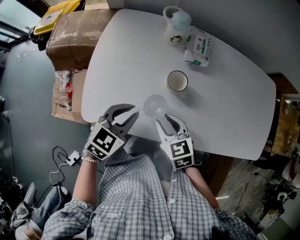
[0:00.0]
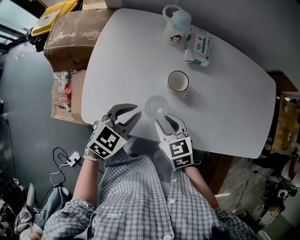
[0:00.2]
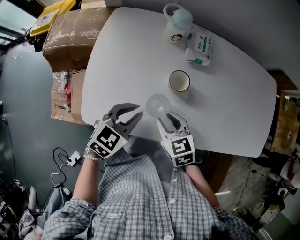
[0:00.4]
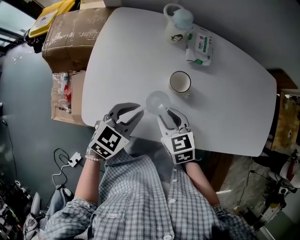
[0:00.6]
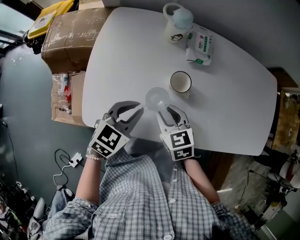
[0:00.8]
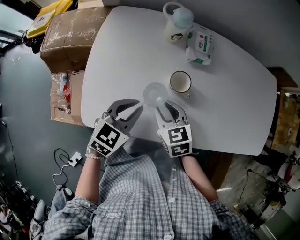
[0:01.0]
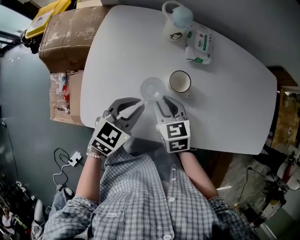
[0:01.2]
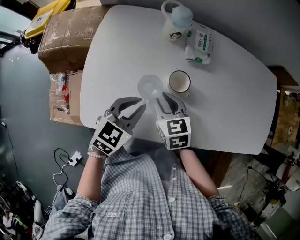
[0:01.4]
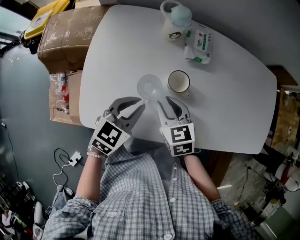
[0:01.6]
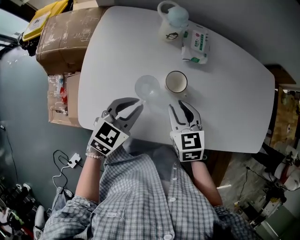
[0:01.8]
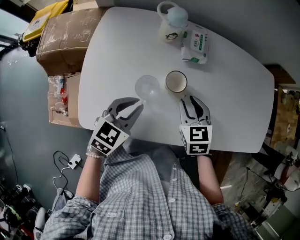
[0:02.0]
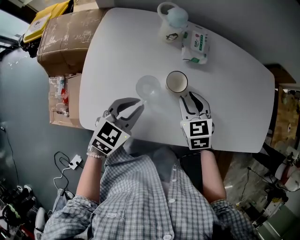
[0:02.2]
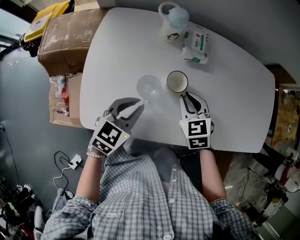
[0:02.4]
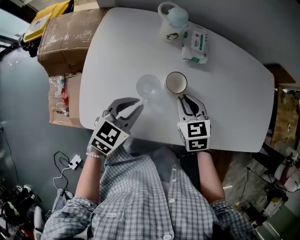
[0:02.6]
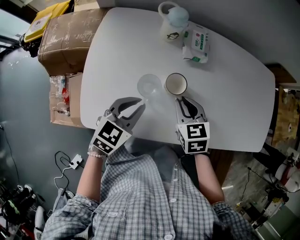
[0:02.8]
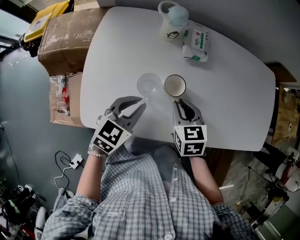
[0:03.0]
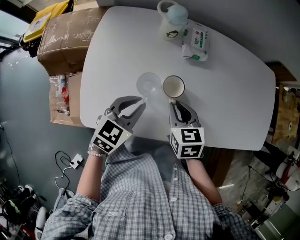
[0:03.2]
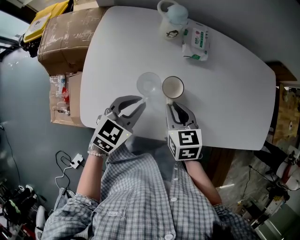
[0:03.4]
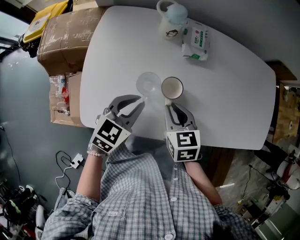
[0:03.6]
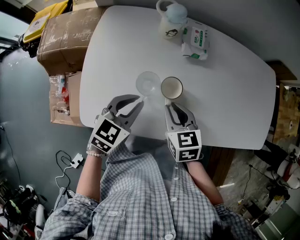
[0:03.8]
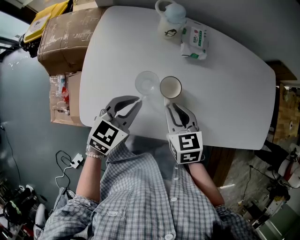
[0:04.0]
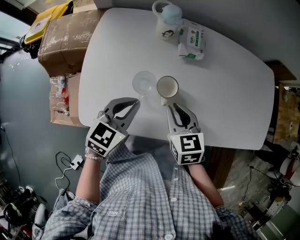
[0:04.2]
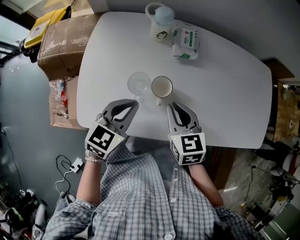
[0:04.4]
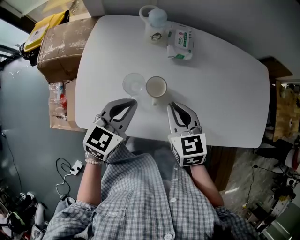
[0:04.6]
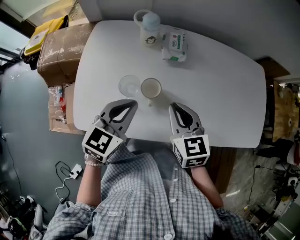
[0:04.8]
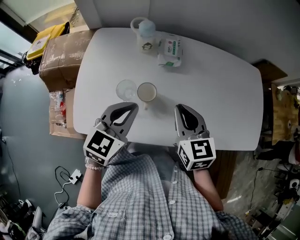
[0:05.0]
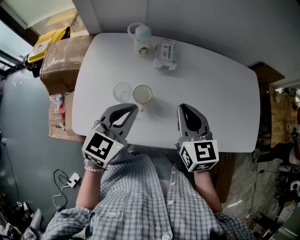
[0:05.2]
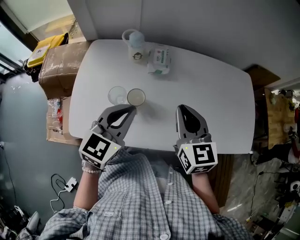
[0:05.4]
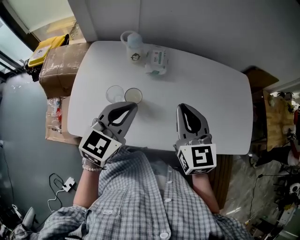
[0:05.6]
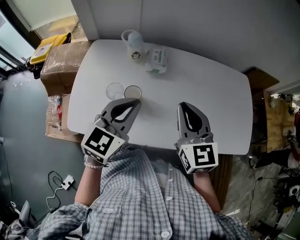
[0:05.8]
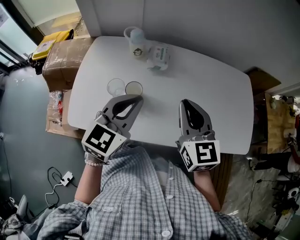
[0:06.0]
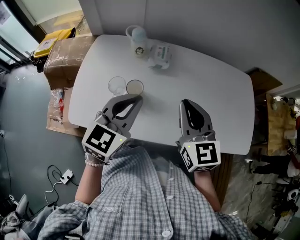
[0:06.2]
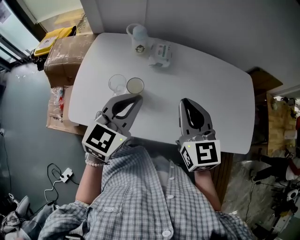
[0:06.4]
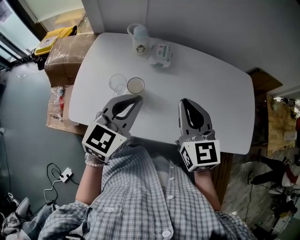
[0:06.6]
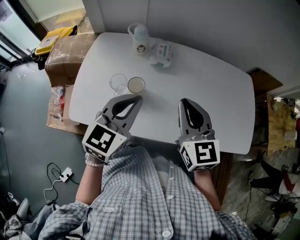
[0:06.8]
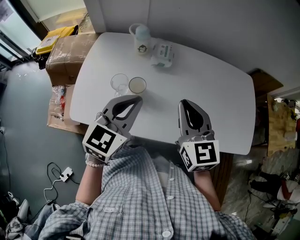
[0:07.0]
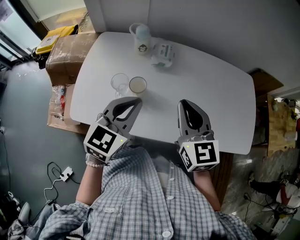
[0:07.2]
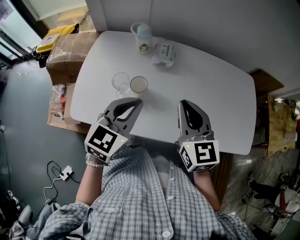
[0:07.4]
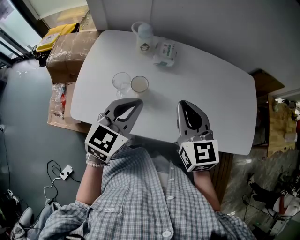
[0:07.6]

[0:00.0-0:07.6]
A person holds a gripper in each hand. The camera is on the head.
0.0 to 1.6 s: The right gripper heads forward, covering about 5 cm.
1.6 to 3.0 s: The right gripper shifts about 5 cm to the right.
3.0 to 4.6 s: The two grippers go about 5 cm upward.
4.6 to 6.0 s: Both grippers travel together upward and to the right, approximately 15 cm. The right gripper changes its angle by approximately 20 degrees.
6.0 to 7.6 s: The grippers stay close to where they were, moving slightly.

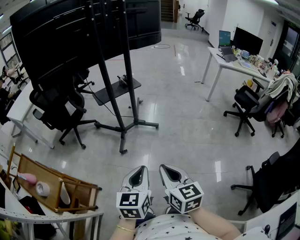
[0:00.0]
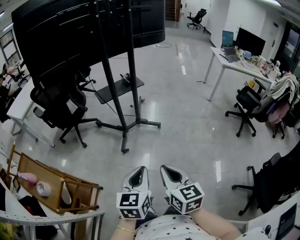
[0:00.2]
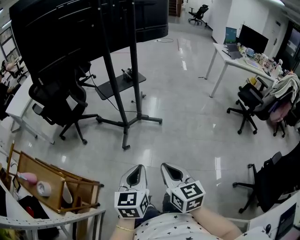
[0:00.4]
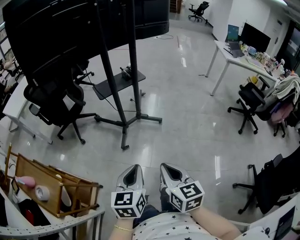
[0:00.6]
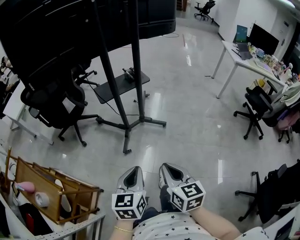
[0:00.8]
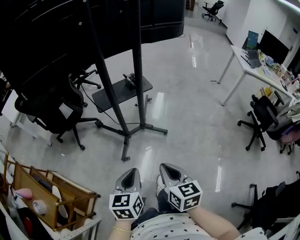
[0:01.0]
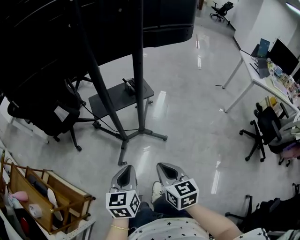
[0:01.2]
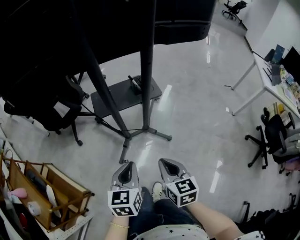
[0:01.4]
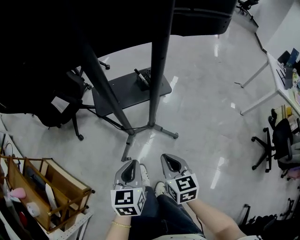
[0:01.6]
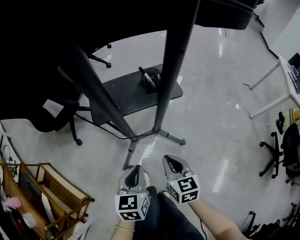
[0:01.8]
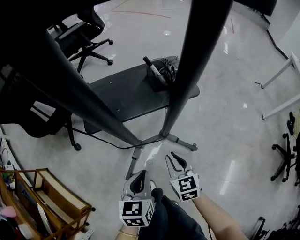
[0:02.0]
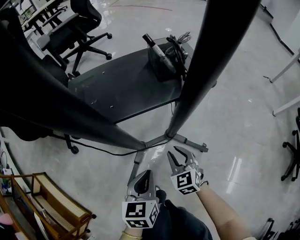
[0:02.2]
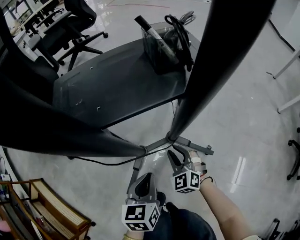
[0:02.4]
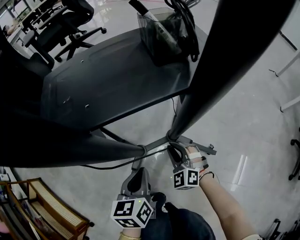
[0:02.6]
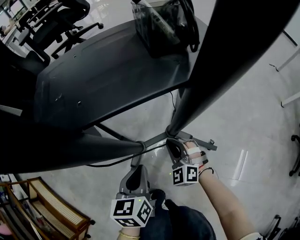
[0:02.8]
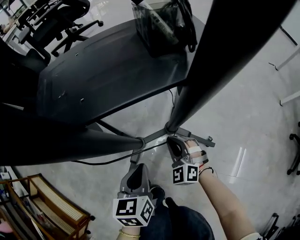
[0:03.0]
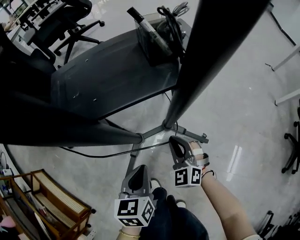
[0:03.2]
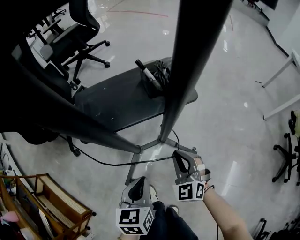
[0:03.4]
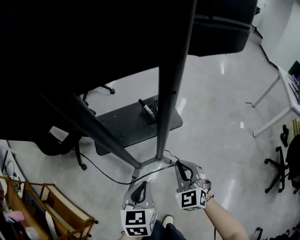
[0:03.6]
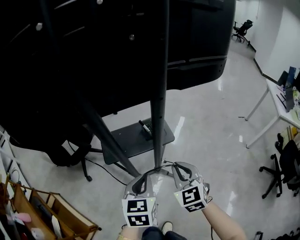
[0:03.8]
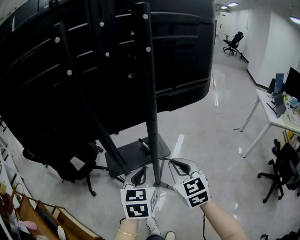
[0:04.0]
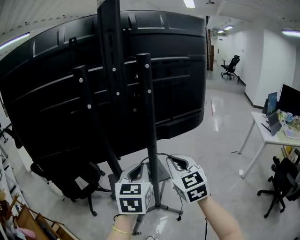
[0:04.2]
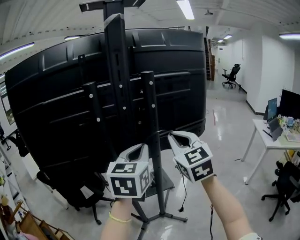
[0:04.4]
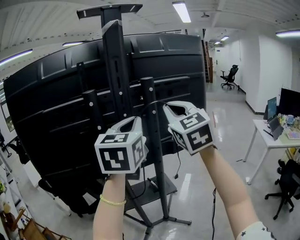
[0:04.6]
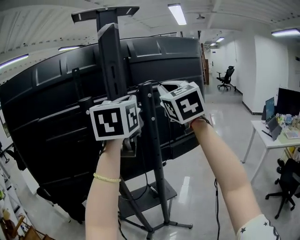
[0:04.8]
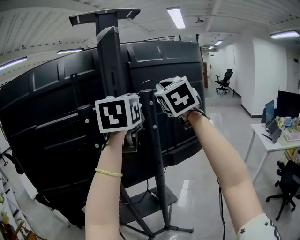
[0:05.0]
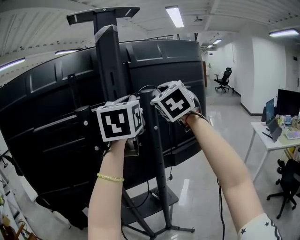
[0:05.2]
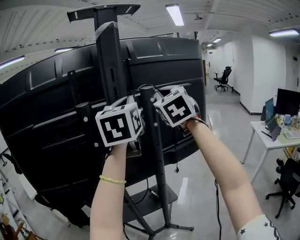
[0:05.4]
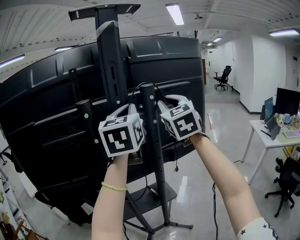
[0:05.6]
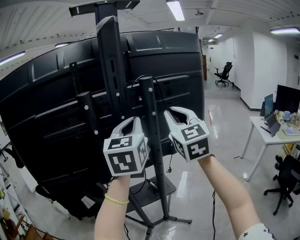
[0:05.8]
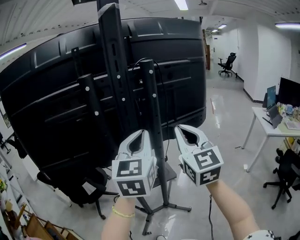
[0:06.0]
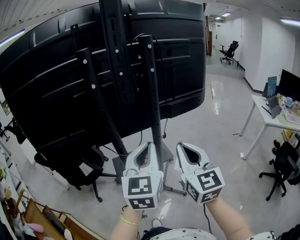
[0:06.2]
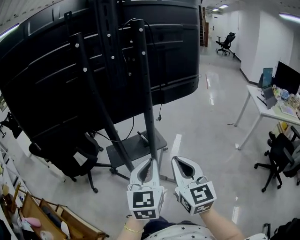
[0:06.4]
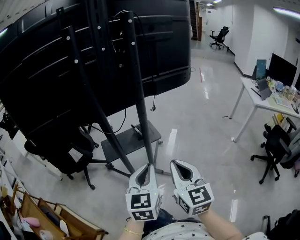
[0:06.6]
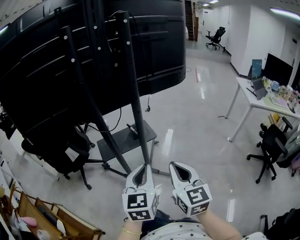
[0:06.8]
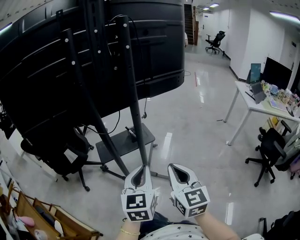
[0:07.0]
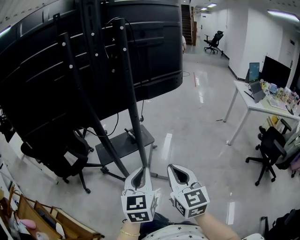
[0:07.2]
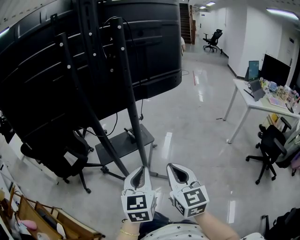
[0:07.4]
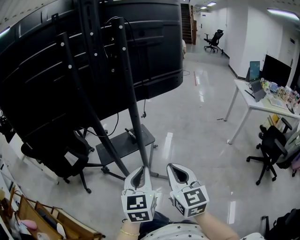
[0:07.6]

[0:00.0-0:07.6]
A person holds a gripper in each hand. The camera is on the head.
0.0 to 1.6 s: The pair of grippers is taken forward, roughly 50 cm. The left gripper swivels roughly 20 degrees.
1.6 to 3.0 s: The two grippers go about 50 cm downward and forward. The right gripper twists roughly 60 degrees counterclockwise, seen from behind, and opens and closes again.
3.0 to 4.6 s: Both grippers move upward, approximately 1 m. The left gripper angles its fingers upward, by about 40 degrees; the right gripper tips its fingers upward by about 40 degrees.
4.6 to 6.0 s: The right gripper travels downward and backward by about 15 cm, while the left gripper goes roughly 10 cm downward.
6.0 to 7.6 s: The two grippers go roughly 30 cm downward and backward. The right gripper turns by roughly 20 degrees.

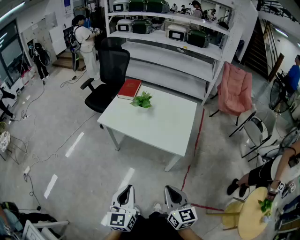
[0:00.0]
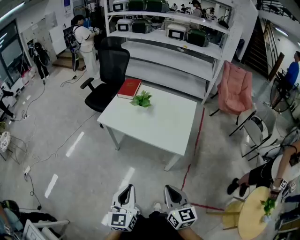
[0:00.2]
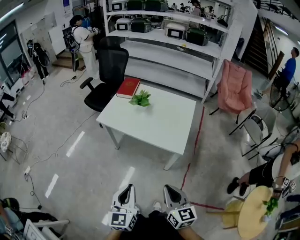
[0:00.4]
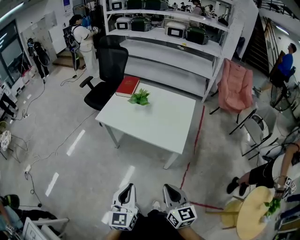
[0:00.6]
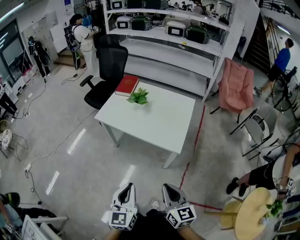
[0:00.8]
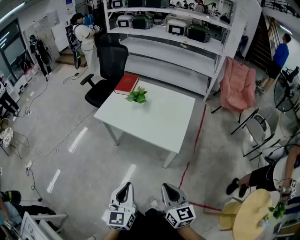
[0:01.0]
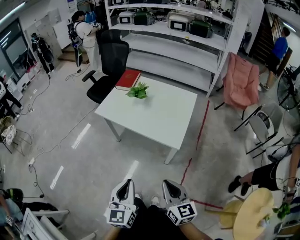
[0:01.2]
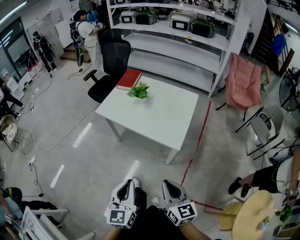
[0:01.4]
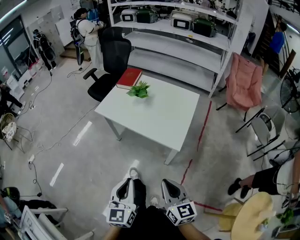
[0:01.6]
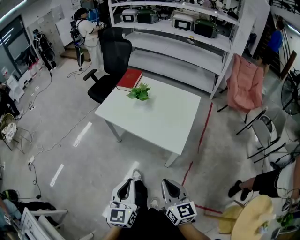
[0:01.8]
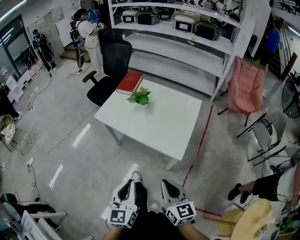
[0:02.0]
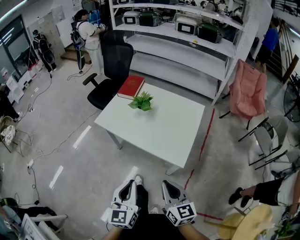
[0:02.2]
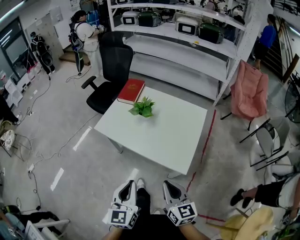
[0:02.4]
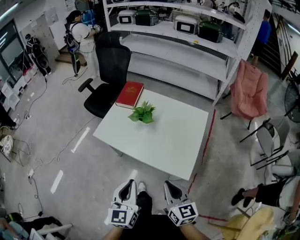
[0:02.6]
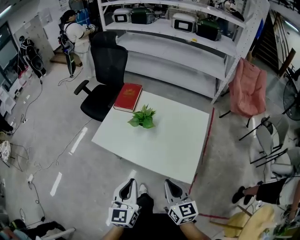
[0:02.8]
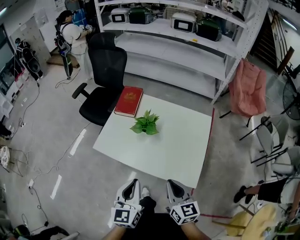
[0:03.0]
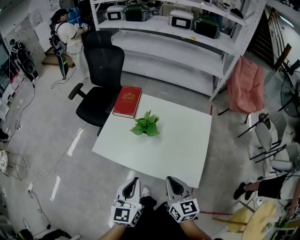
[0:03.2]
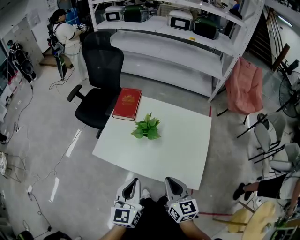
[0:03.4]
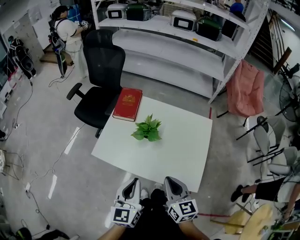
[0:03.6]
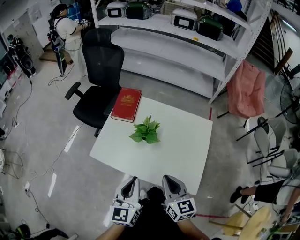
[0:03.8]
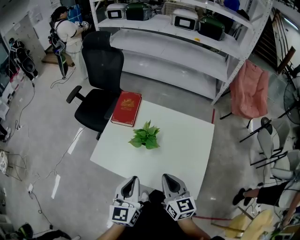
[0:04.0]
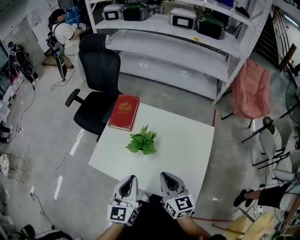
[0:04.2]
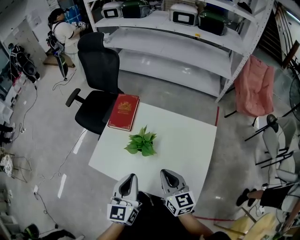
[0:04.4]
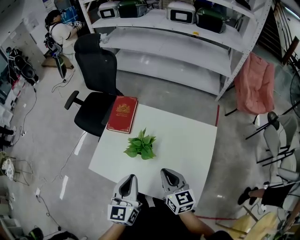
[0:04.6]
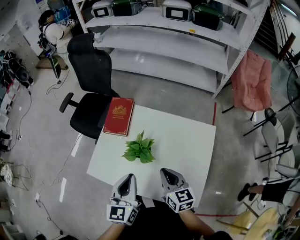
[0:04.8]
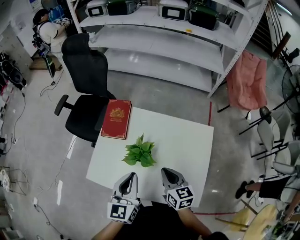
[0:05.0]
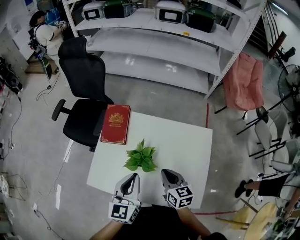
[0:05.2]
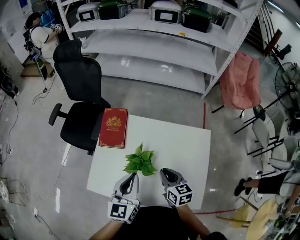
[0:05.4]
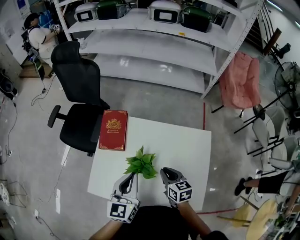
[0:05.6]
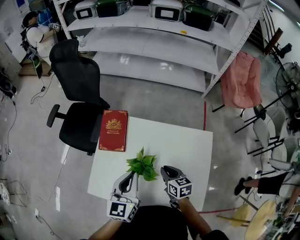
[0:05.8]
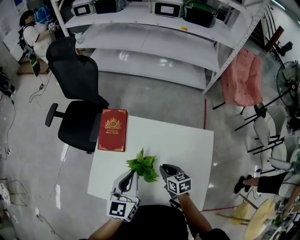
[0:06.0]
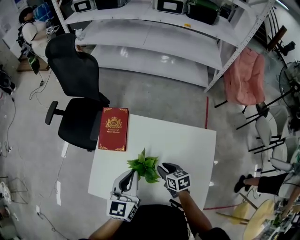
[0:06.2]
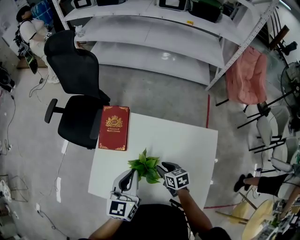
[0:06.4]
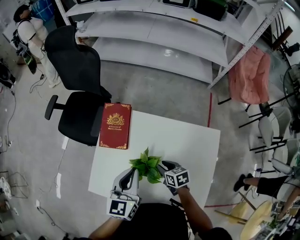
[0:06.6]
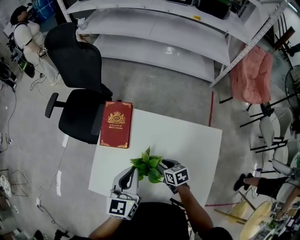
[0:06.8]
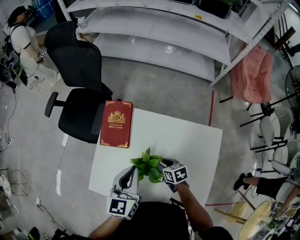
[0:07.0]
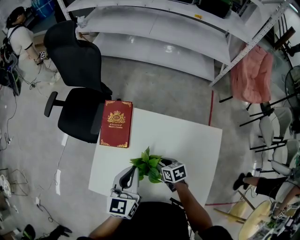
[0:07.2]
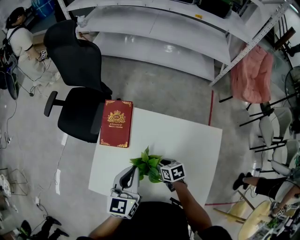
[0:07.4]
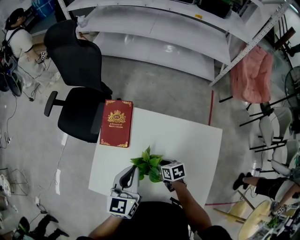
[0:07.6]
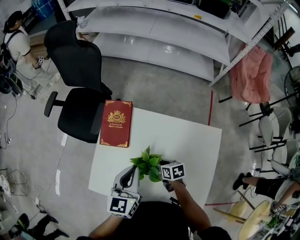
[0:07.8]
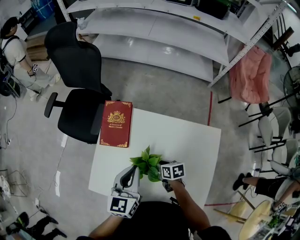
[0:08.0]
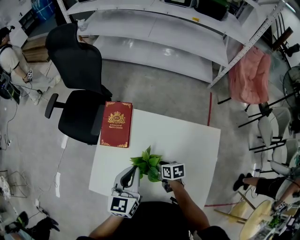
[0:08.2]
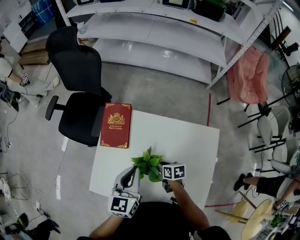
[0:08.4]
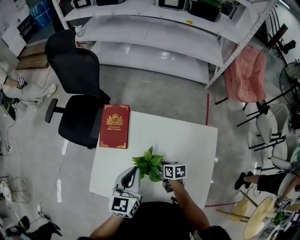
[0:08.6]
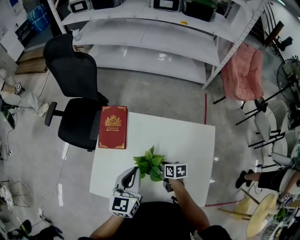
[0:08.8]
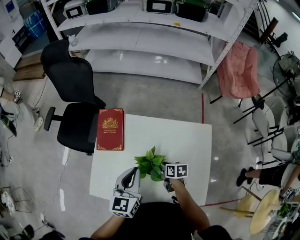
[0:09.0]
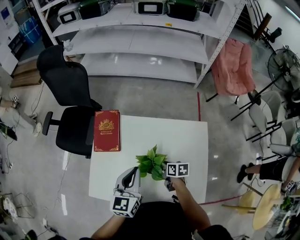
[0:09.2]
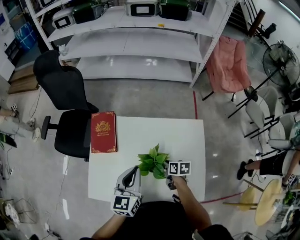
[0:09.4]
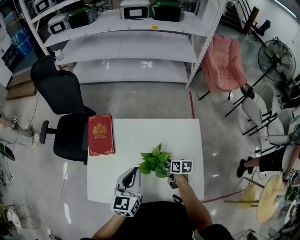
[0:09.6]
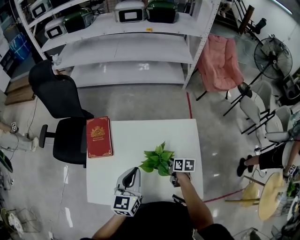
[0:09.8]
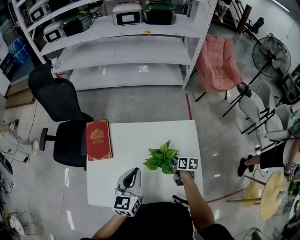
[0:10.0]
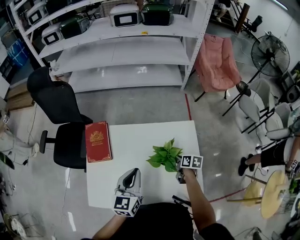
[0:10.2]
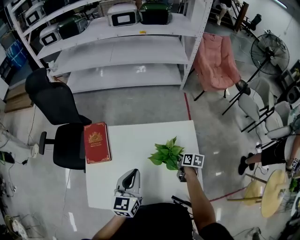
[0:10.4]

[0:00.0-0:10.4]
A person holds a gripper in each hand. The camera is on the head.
0.0 to 1.4 s: The grippers both shift to the right by roughly 10 cm.
1.4 to 3.0 s: Both grippers travel together forward, about 35 cm.
3.0 to 4.4 s: Both grippers travel together forward, roughly 20 cm.
4.4 to 6.0 s: The right gripper is displaced forward and downward by about 20 cm, and changes its angle by approximately 30 degrees; the left gripper travels forward by about 20 cm.
6.0 to 7.4 s: The left gripper ends up some 5 cm from where it was. The right gripper goes about 10 cm downward, and opens its fingers.
7.4 to 9.0 s: The left gripper moves some 5 cm, while the right gripper shifts by roughly 5 cm, and swivels roughly 20 degrees.
9.0 to 10.4 s: The right gripper goes some 20 cm to the right, and changes its angle by roughly 20 degrees. The left gripper is displaced to the right by approximately 10 cm.
